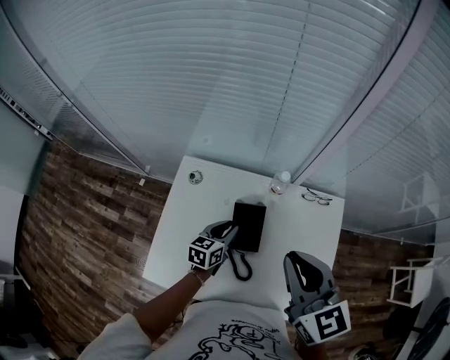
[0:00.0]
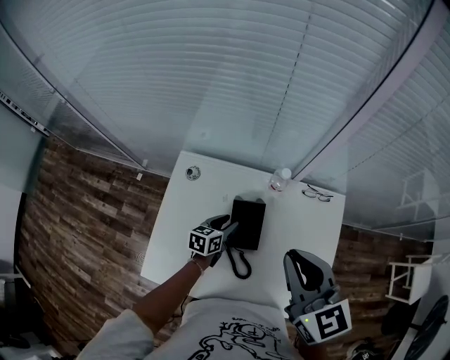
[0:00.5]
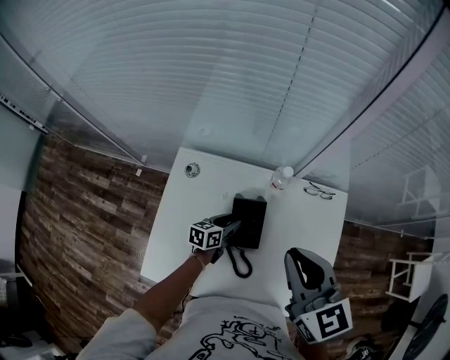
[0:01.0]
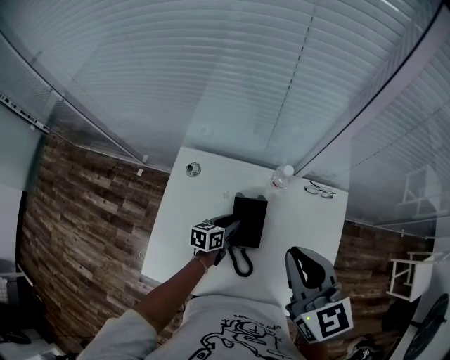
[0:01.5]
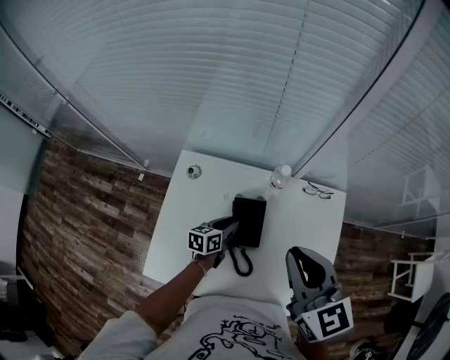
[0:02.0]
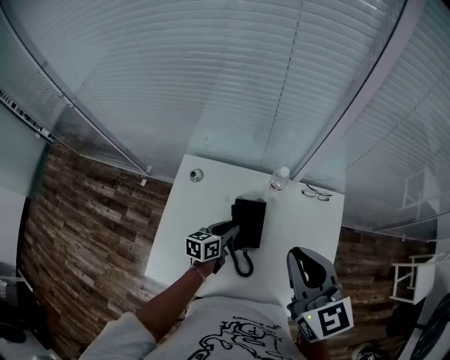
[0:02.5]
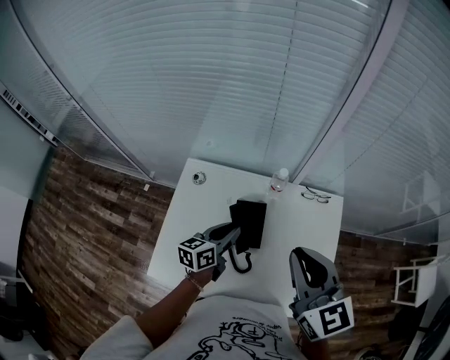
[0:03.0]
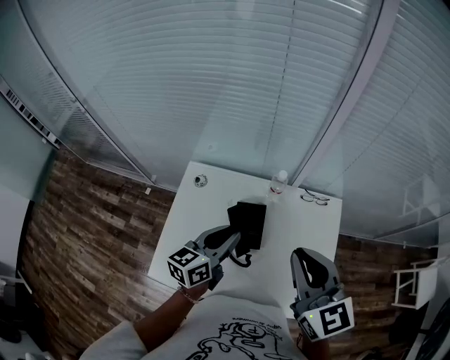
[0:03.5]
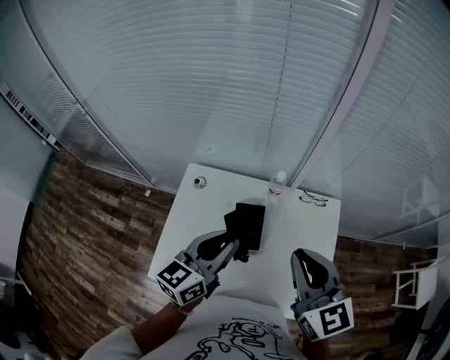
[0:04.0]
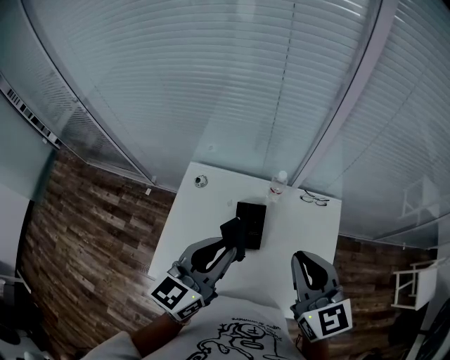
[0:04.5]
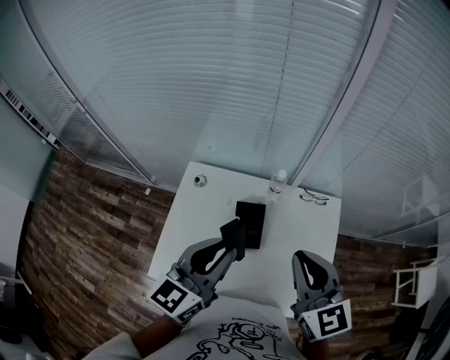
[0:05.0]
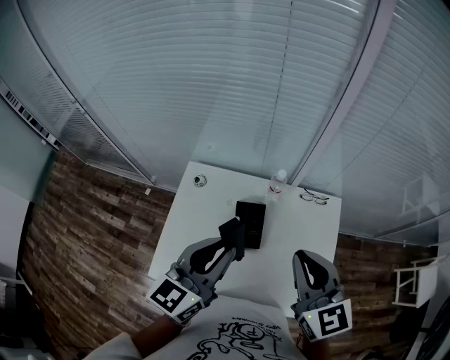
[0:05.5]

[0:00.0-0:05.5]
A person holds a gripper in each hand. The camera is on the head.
0:00.0 to 0:02.0: The left gripper is displaced downward by some 5 cm.
0:02.0 to 0:03.5: The right gripper moves some 5 cm. Meanwhile the left gripper goes some 25 cm upward, and changes its angle by roughly 20 degrees.
0:03.5 to 0:05.5: The left gripper is displaced upward by some 10 cm.

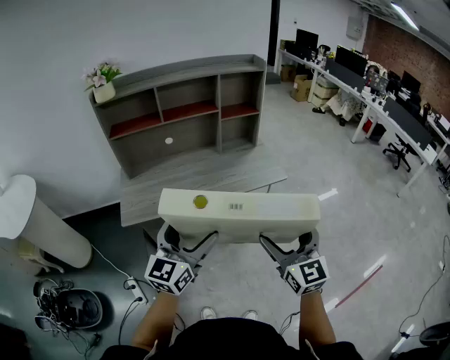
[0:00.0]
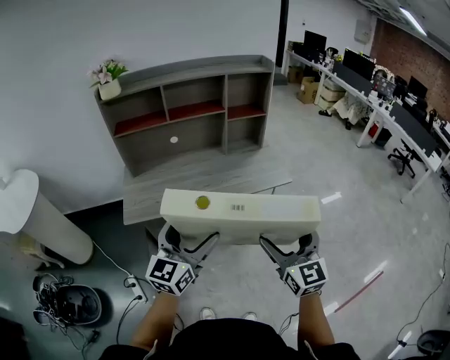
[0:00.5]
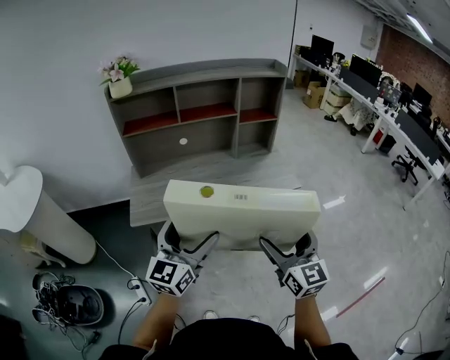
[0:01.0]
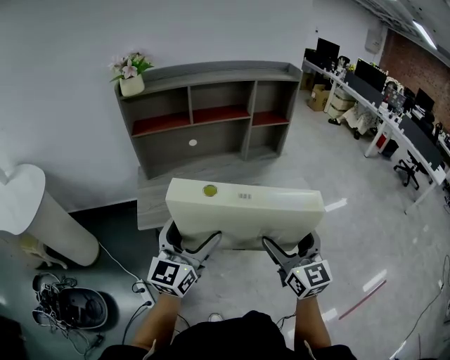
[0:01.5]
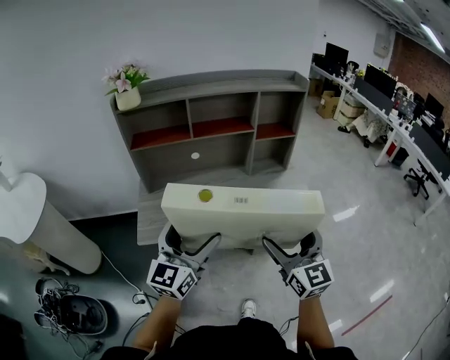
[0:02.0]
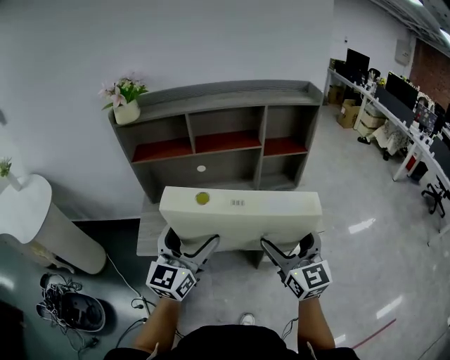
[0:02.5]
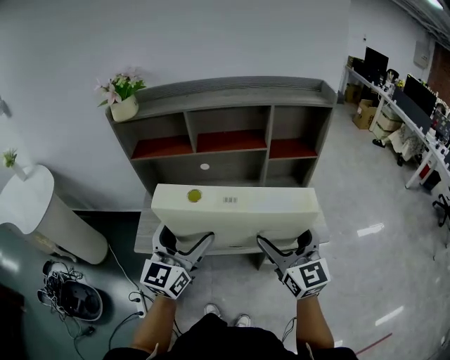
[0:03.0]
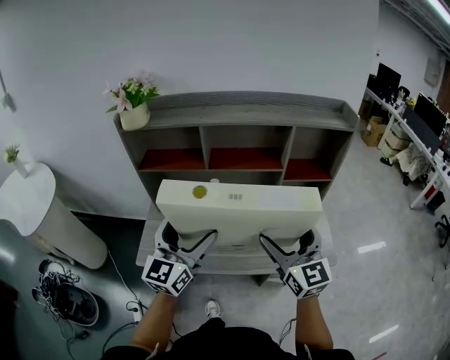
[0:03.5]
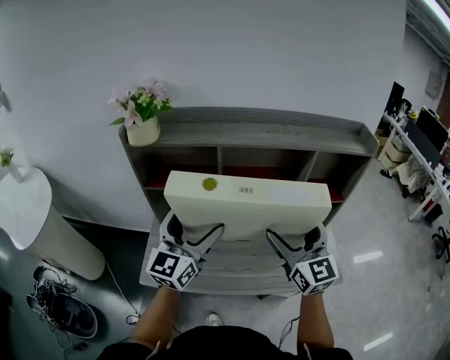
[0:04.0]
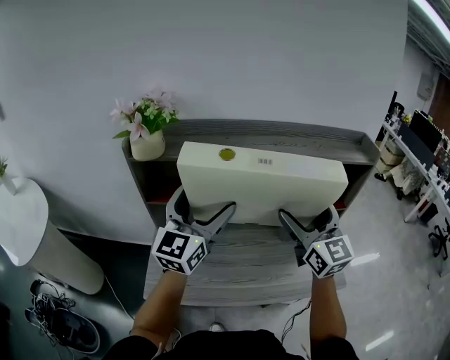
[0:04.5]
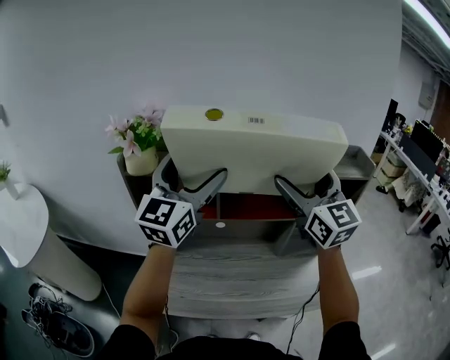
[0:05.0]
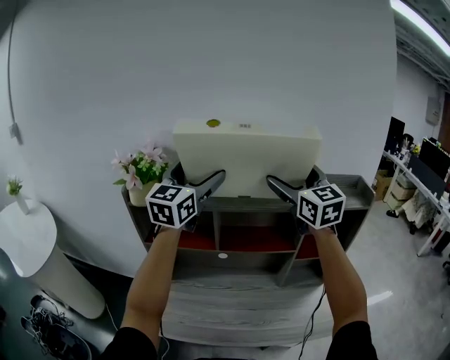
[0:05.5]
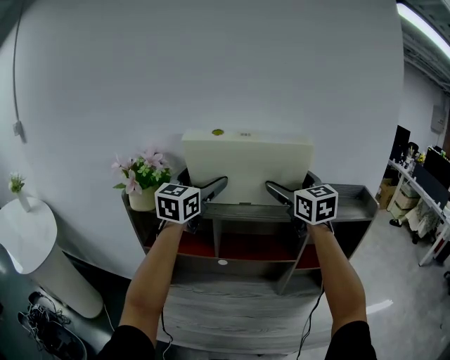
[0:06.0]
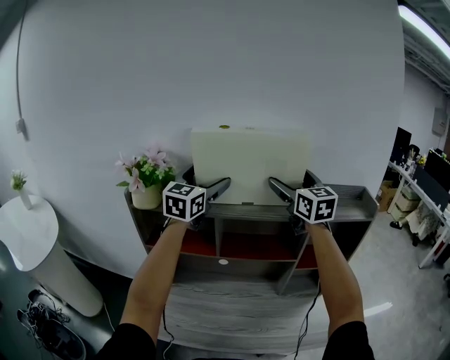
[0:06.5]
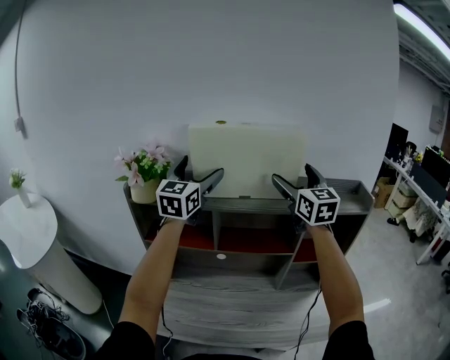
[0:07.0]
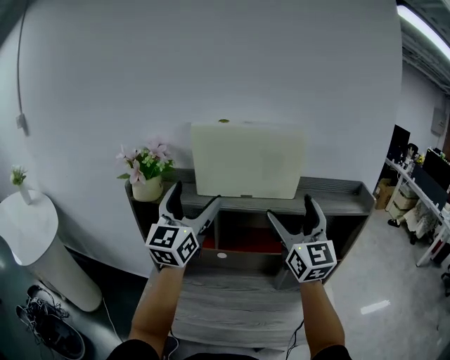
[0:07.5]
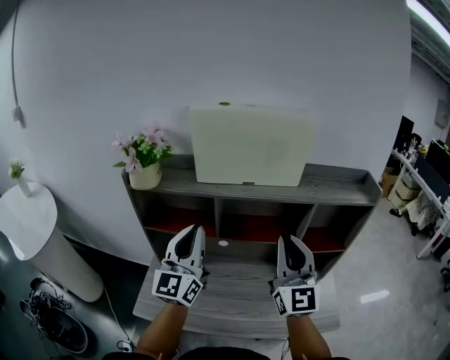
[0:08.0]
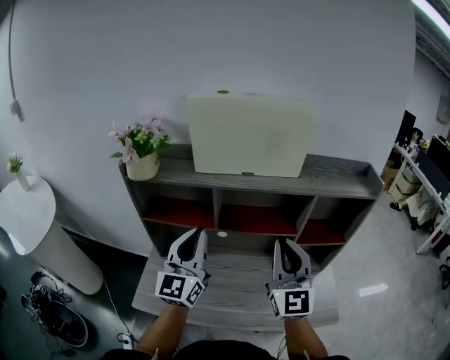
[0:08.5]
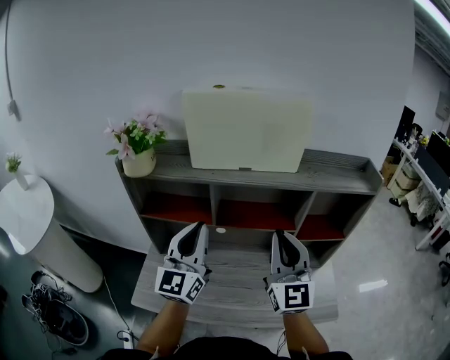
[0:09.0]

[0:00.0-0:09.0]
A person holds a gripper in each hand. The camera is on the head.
0:00.0 to 0:02.0: Both grippers travel together forward and to the left, approximately 15 cm.
0:02.0 to 0:04.5: The two grippers go roughly 35 cm forward.
0:04.5 to 0:07.0: Both grippers move forward and upward, approximately 20 cm.
0:07.0 to 0:09.0: The two grippers go some 25 cm backward and downward. The left gripper closes, while the right gripper closes.

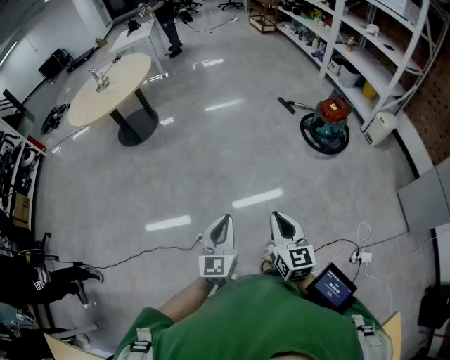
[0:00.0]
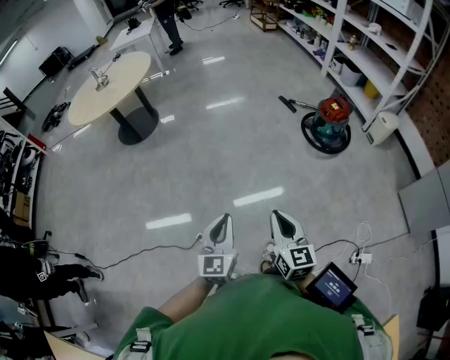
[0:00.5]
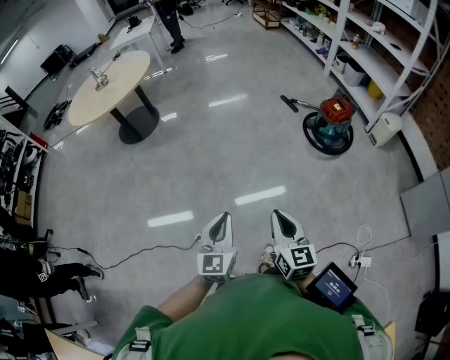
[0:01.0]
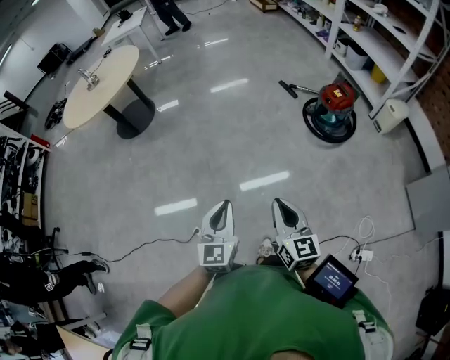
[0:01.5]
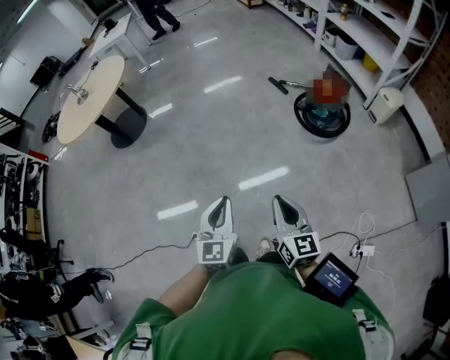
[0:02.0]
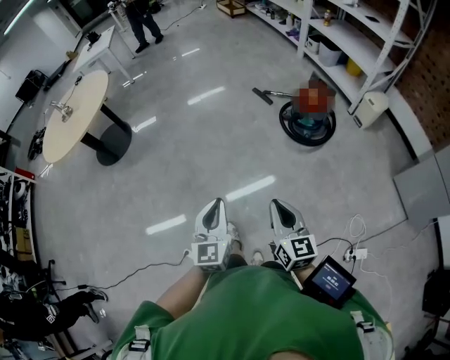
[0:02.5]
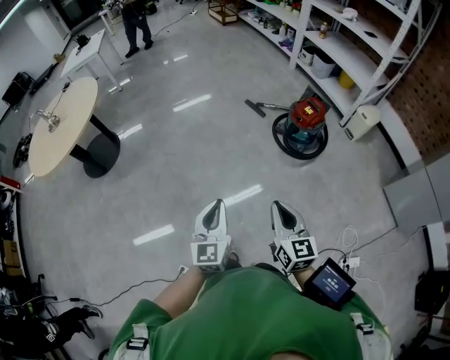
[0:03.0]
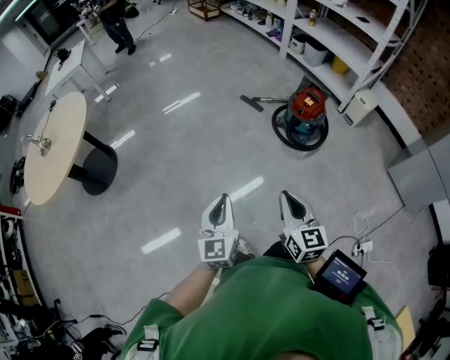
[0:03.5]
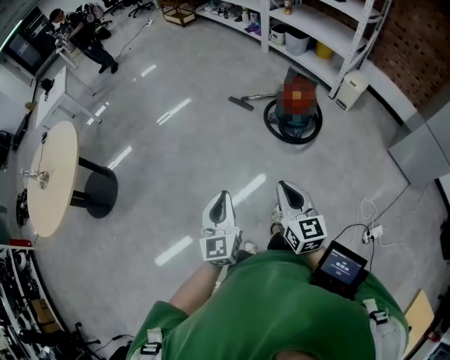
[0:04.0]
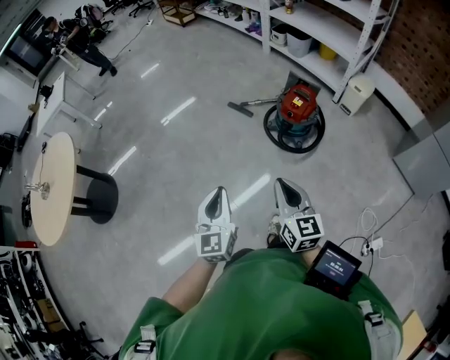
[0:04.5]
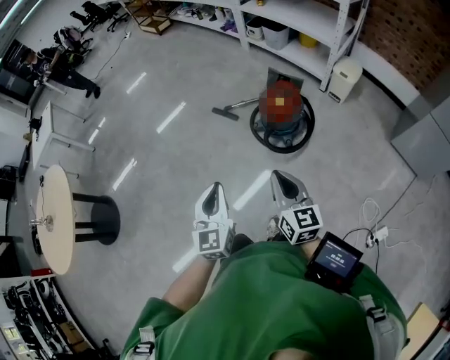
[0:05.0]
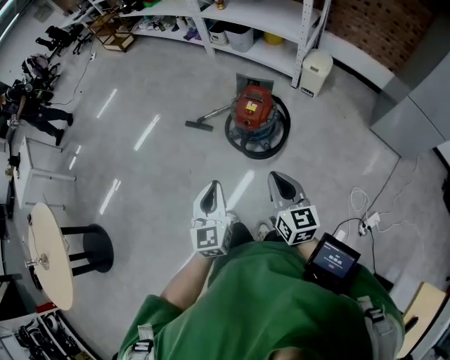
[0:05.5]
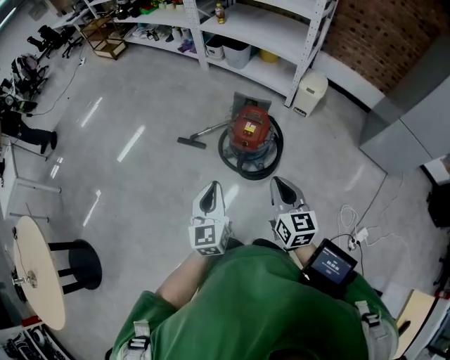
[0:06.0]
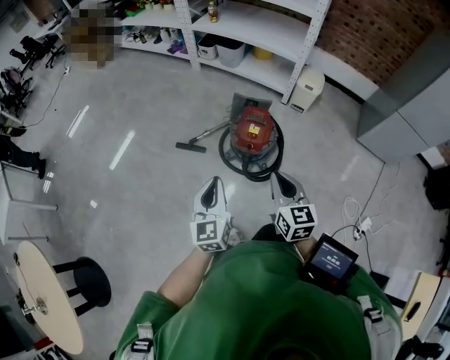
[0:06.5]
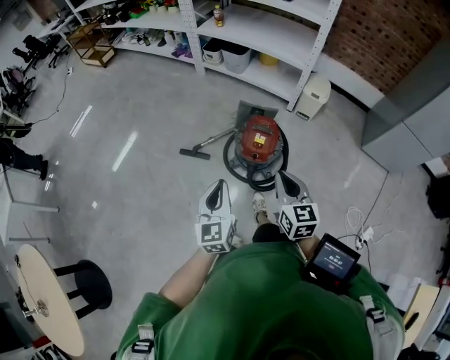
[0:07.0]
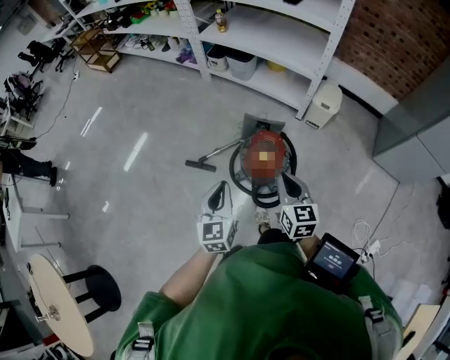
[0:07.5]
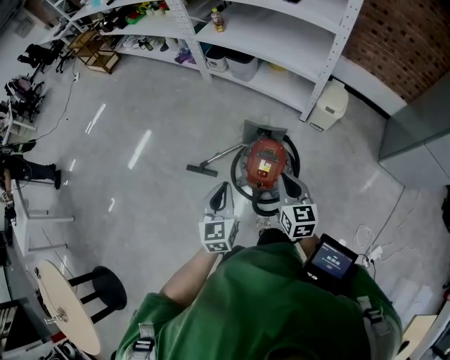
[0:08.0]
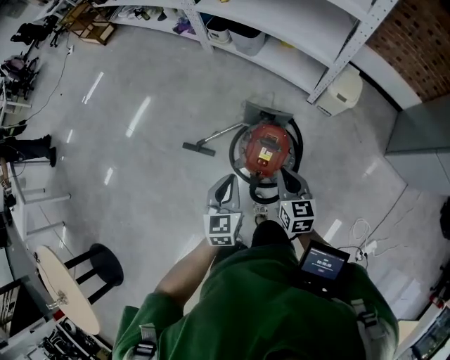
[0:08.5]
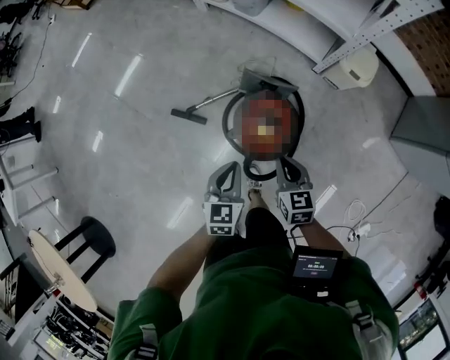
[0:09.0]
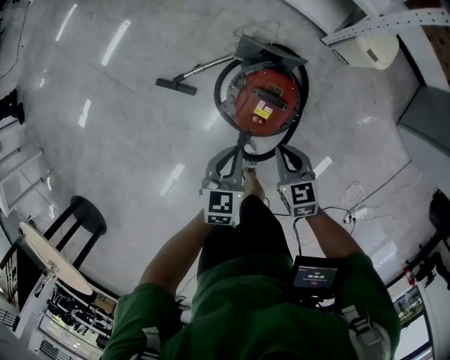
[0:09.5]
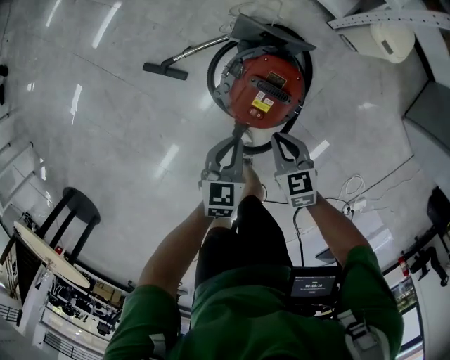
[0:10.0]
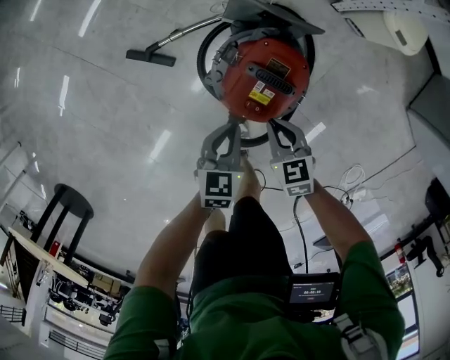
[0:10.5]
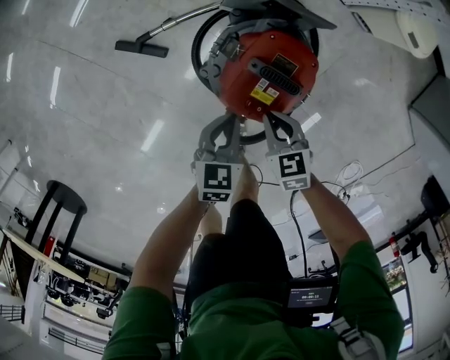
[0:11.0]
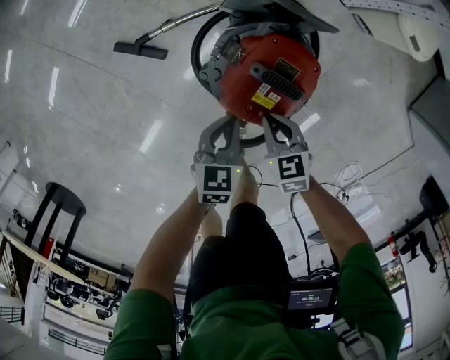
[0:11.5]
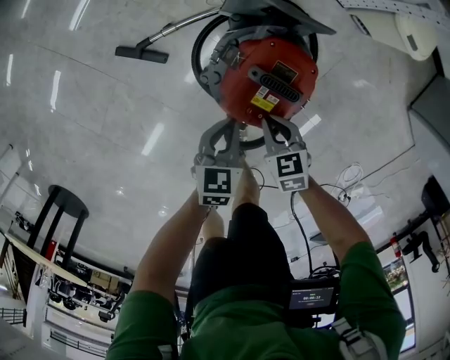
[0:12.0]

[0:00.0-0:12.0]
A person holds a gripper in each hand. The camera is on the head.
0:00.0 to 0:02.0: The two grippers go roughly 20 cm to the right and forward.
0:02.0 to 0:04.0: Both grippers move forward, approximately 25 cm. The right gripper changes its angle by approximately 20 degrees.
0:04.0 to 0:06.0: The two grippers go about 40 cm forward and to the right. The right gripper swivels roughly 20 degrees.
0:06.0 to 0:08.0: Both grippers travel together forward, roughly 30 cm.
0:08.0 to 0:10.0: The grippers both shift downward by some 35 cm. The right gripper rotates about 40 degrees. The left gripper turns by about 30 degrees.
0:10.0 to 0:12.0: Both grippers travel together downward, some 15 cm.
